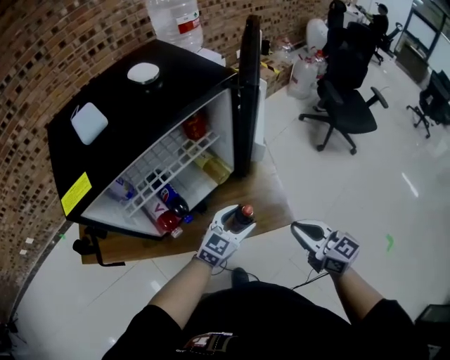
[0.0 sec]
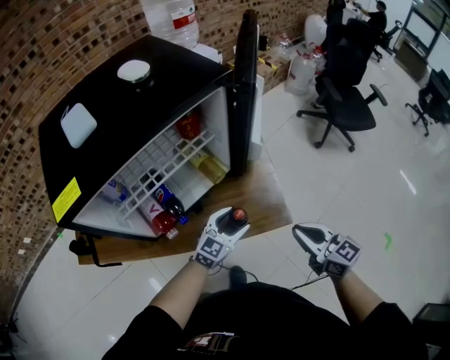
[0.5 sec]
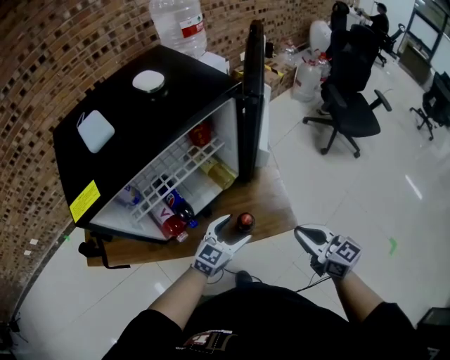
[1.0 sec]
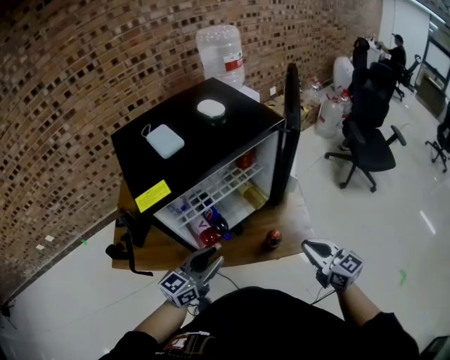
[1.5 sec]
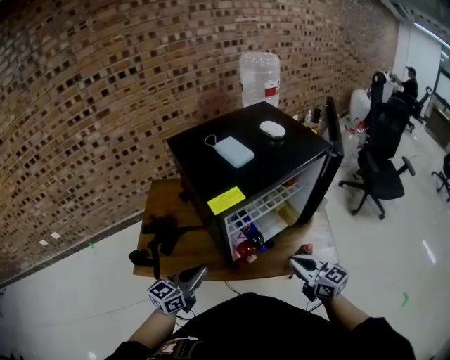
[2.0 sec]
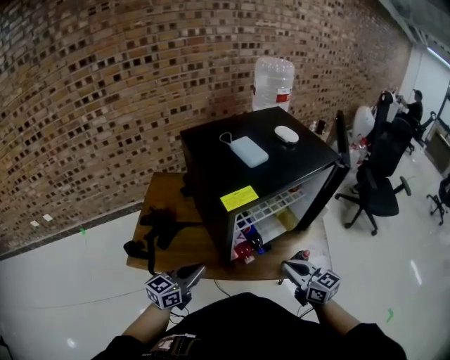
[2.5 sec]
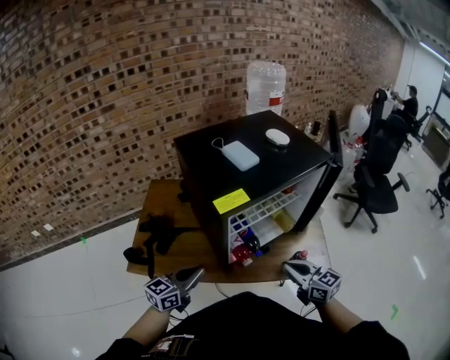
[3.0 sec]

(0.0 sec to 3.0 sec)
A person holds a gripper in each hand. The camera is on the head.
0.0 sec - 1.5 sec: The left gripper travels to the left, upward and backward by about 30 cm, changes its angle by roughly 20 degrees, and closes its fingers, while the right gripper moves to the left and upward, approximately 10 cm.
1.5 sec - 3.0 sec: Both grippers move to the left, approximately 20 cm.

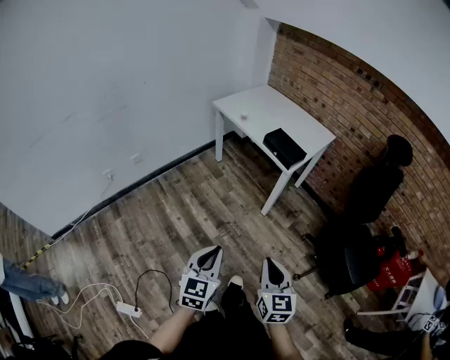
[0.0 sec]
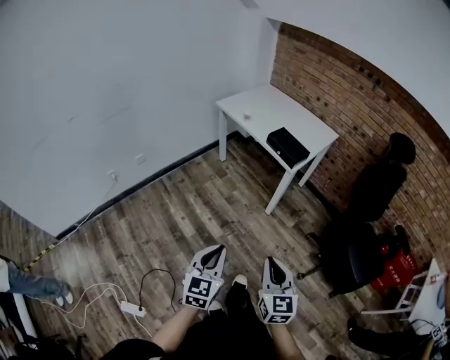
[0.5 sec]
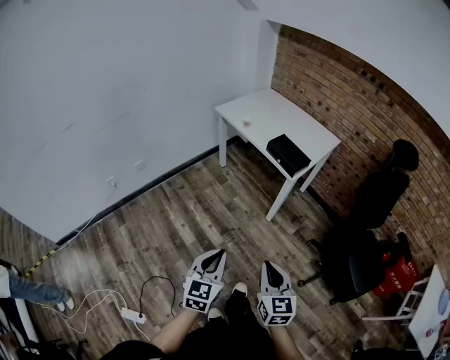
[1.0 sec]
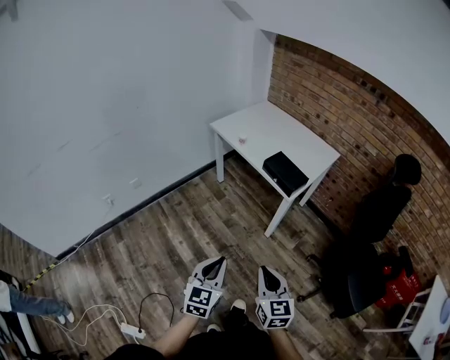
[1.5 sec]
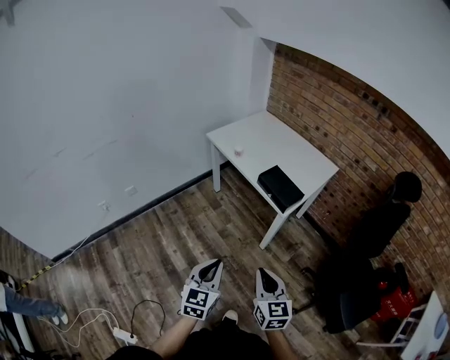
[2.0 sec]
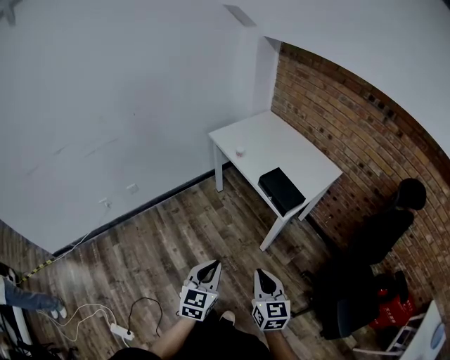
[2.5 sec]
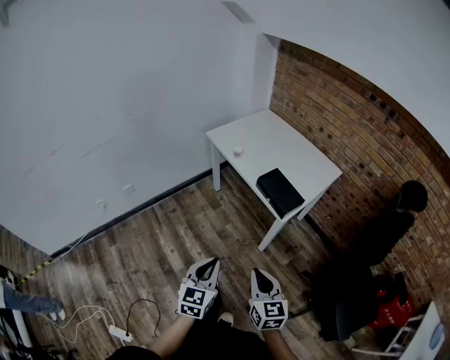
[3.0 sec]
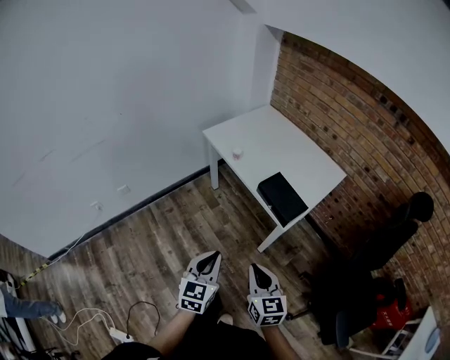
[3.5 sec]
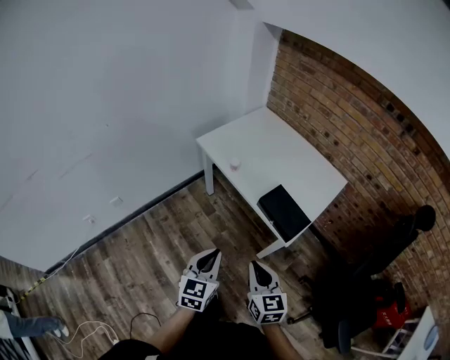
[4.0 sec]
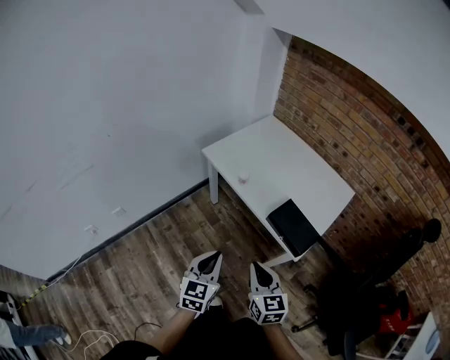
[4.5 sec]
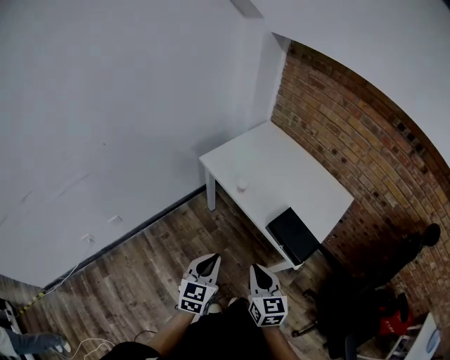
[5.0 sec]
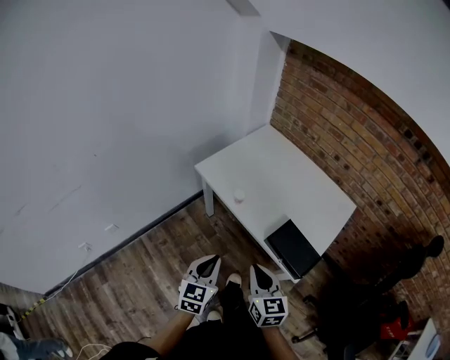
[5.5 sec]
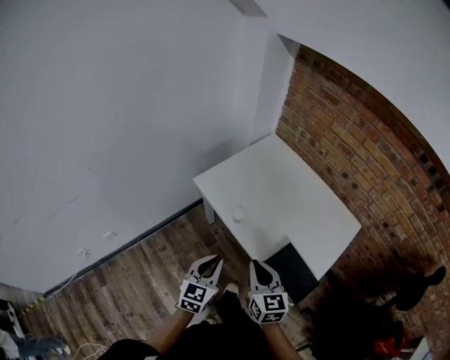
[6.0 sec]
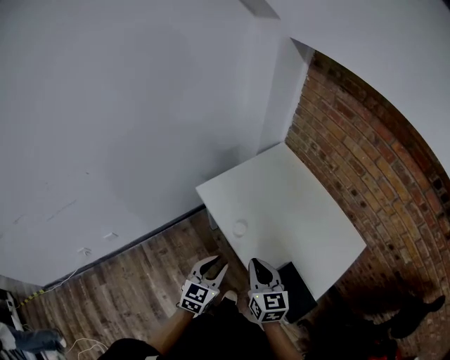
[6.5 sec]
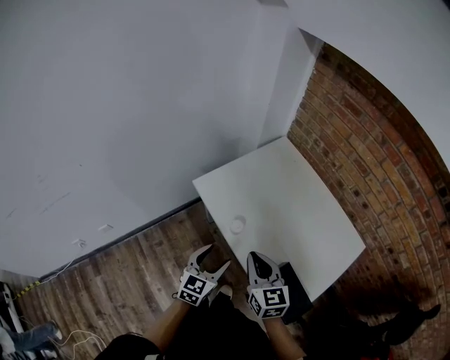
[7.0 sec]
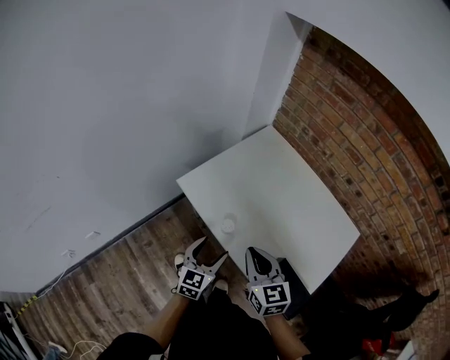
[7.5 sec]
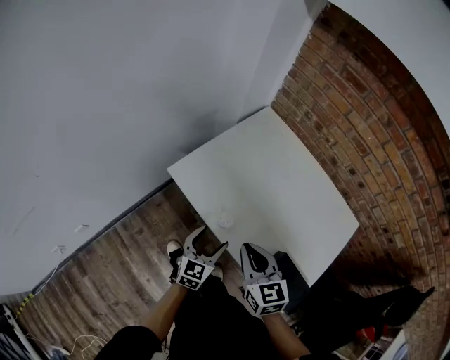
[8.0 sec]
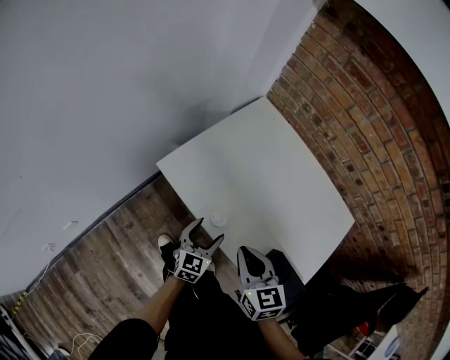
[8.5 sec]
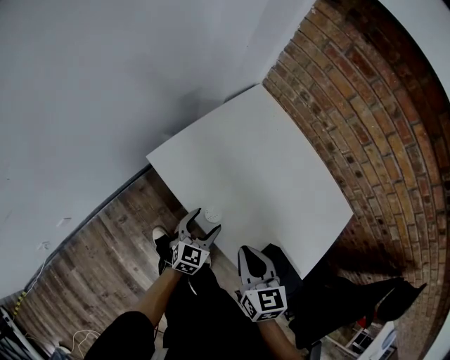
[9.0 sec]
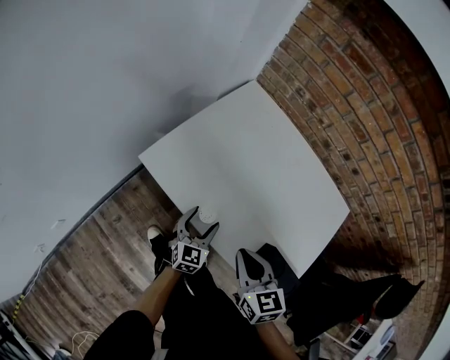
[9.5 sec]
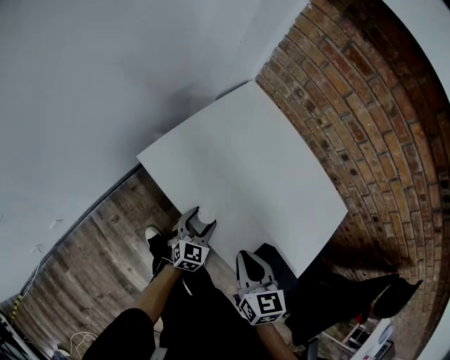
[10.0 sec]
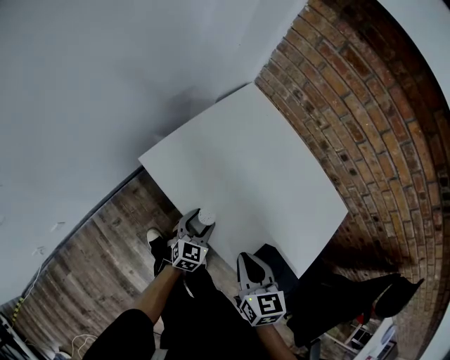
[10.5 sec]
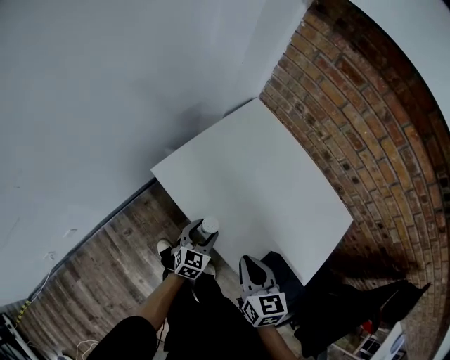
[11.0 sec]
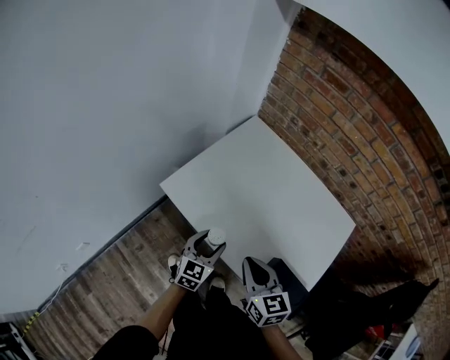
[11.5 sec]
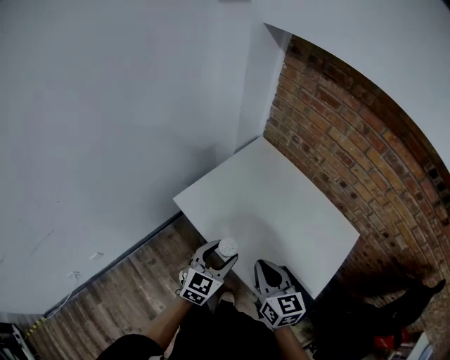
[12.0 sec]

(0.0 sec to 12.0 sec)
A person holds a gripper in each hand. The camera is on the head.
0.0 sec - 2.0 sec: The grippers both shift forward by about 20 cm.
2.0 sec - 4.0 sec: Both grippers move forward, approximately 25 cm.
4.0 sec - 6.0 sec: Both grippers move forward, approximately 30 cm.
6.0 sec - 8.0 sec: The left gripper travels forward and downward by roughly 20 cm, and opens, while the right gripper moves forward, about 15 cm.
8.0 sec - 10.0 sec: The right gripper ends up some 5 cm from where it was, while the left gripper travels downward and forward by approximately 10 cm.
10.0 sec - 12.0 sec: The left gripper heads upward, covering some 20 cm. Meanwhile the right gripper moves upward, about 10 cm.

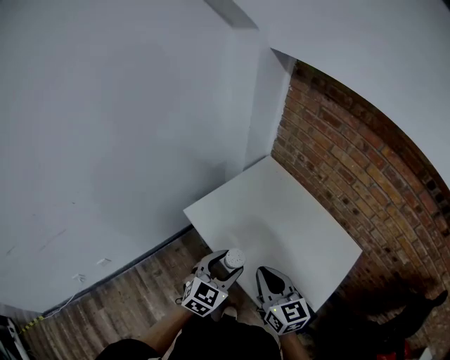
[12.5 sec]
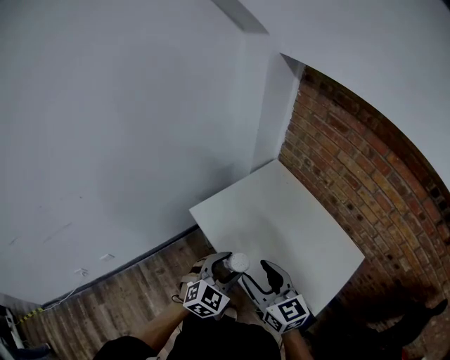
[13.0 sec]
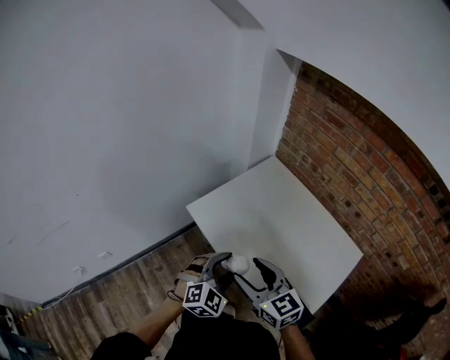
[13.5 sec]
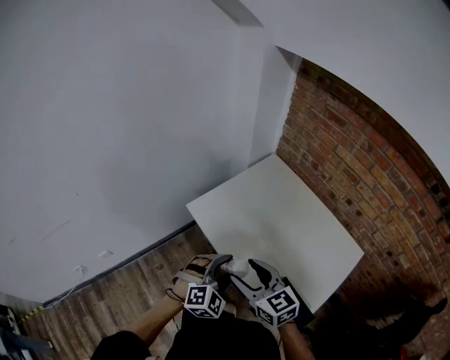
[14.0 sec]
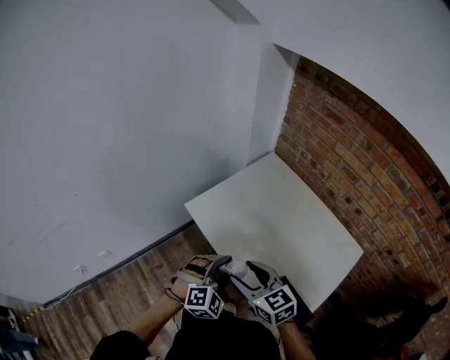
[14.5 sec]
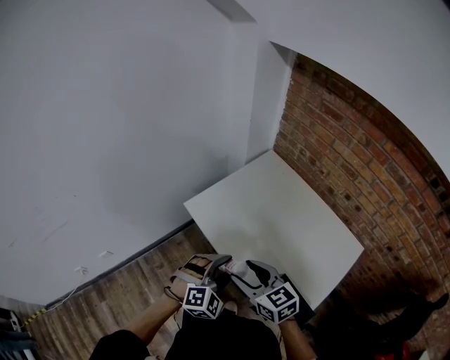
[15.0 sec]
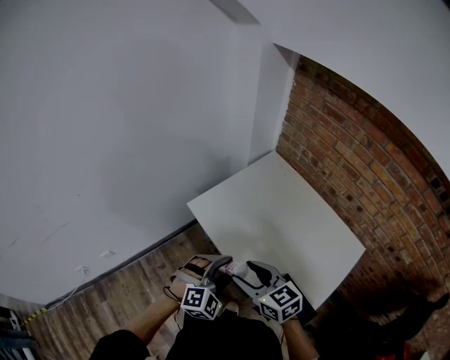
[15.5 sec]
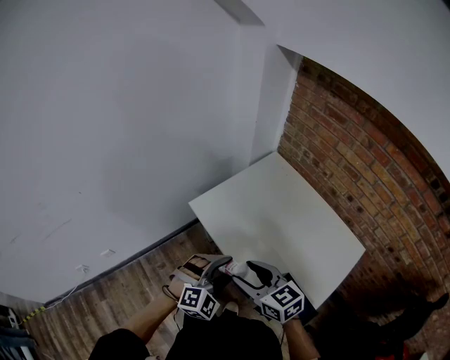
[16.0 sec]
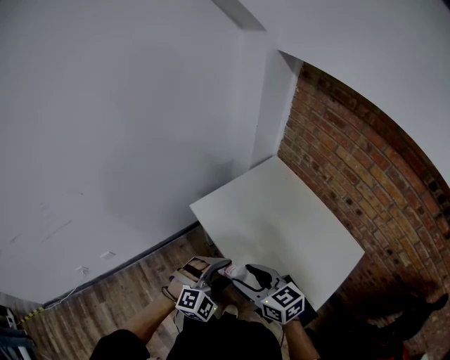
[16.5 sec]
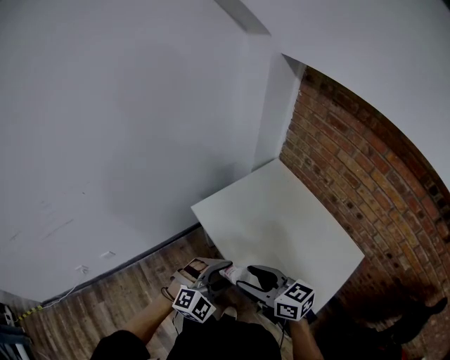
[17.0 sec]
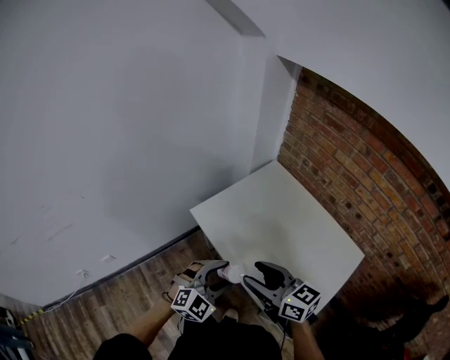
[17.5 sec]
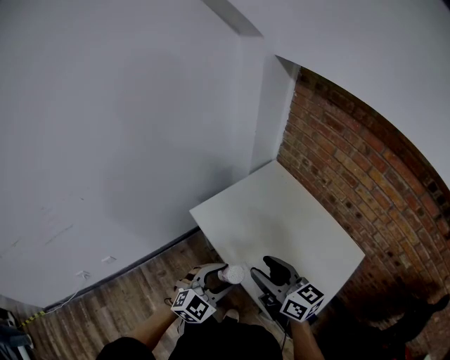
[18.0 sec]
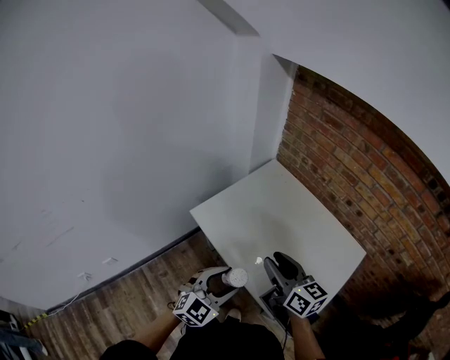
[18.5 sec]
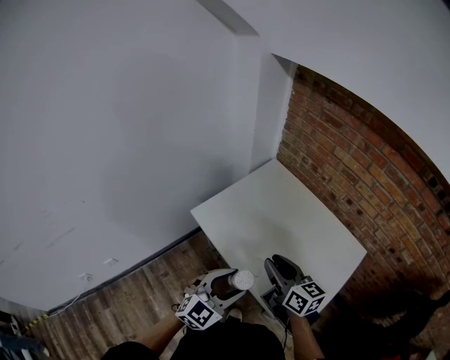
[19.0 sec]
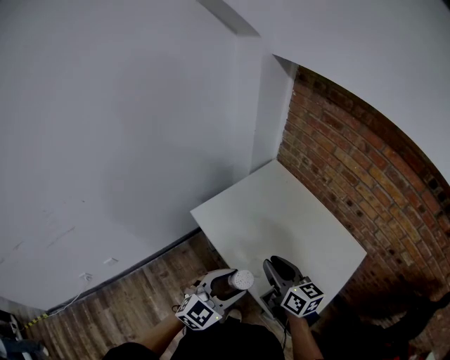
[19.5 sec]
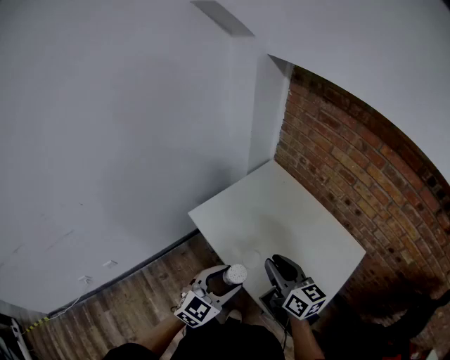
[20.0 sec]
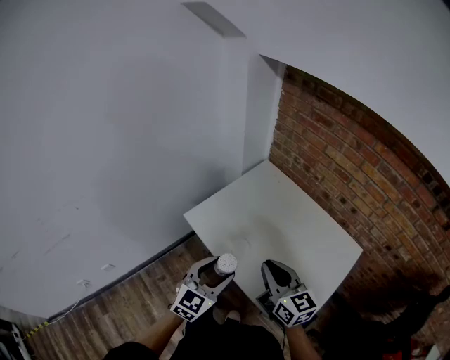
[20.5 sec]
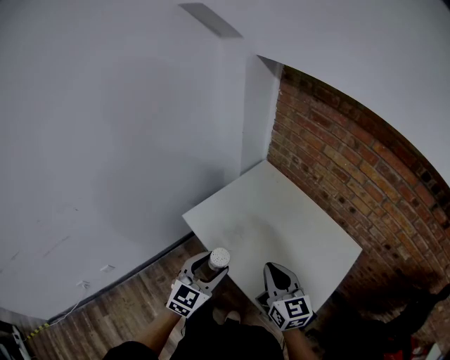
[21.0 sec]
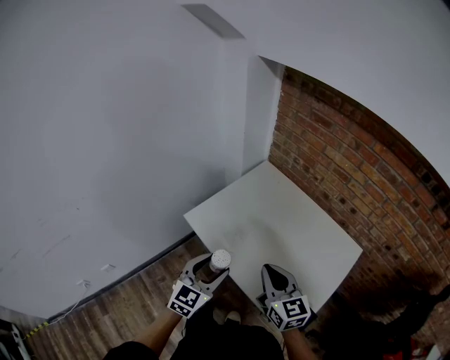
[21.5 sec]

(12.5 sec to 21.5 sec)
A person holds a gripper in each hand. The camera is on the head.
12.5 sec - 14.5 sec: The left gripper ends up about 5 cm from where it was, and swivels about 40 degrees. Meanwhile the right gripper changes place by some 5 cm, rotates some 20 degrees, and opens.
14.5 sec - 17.0 sec: The grippers move only a little.
17.0 sec - 19.5 sec: The right gripper moves to the right and forward, approximately 10 cm, rotates some 30 degrees, and closes its fingers. Meanwhile the left gripper changes its angle by approximately 30 degrees.
19.5 sec - 21.5 sec: The right gripper rotates some 20 degrees, and closes. Meanwhile the left gripper moves forward, approximately 5 cm.

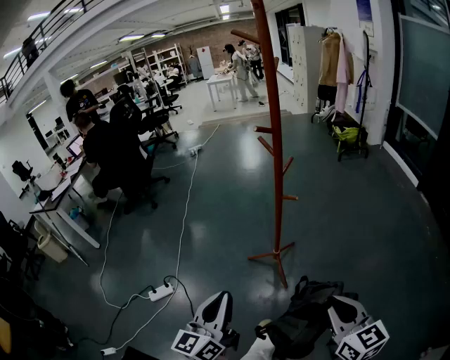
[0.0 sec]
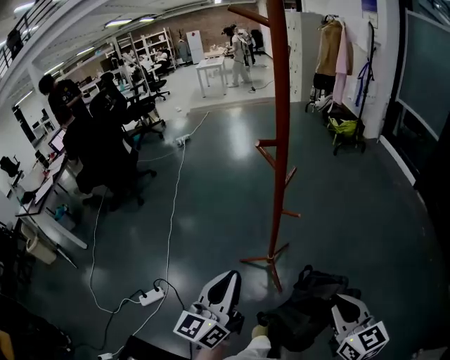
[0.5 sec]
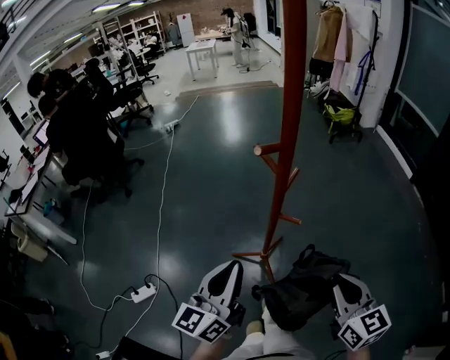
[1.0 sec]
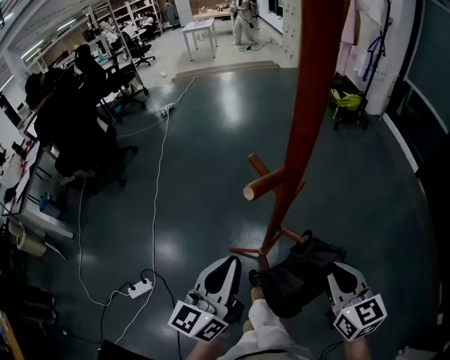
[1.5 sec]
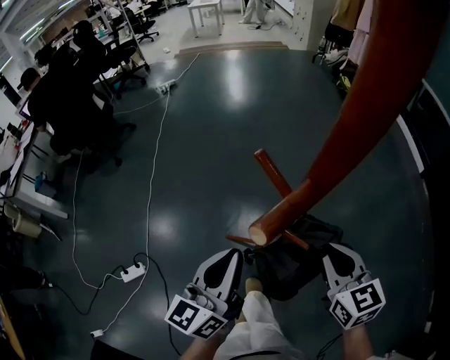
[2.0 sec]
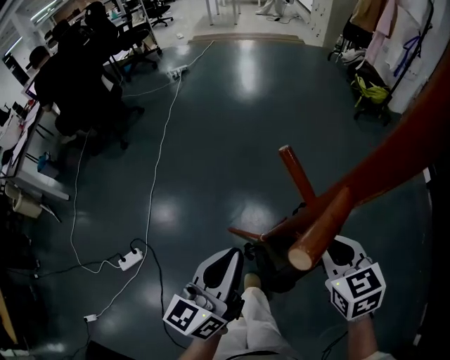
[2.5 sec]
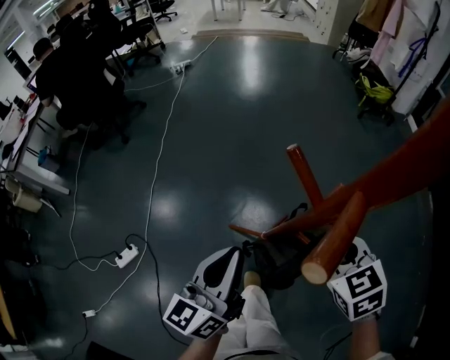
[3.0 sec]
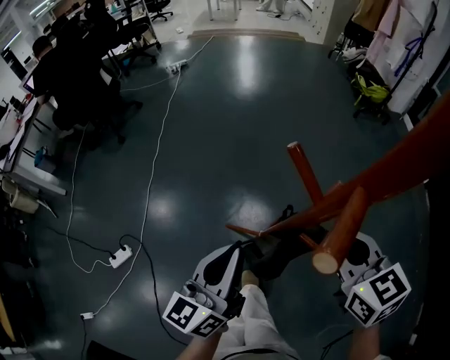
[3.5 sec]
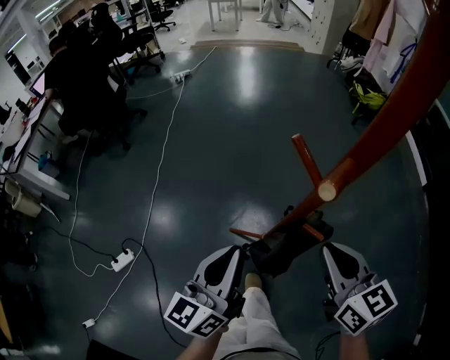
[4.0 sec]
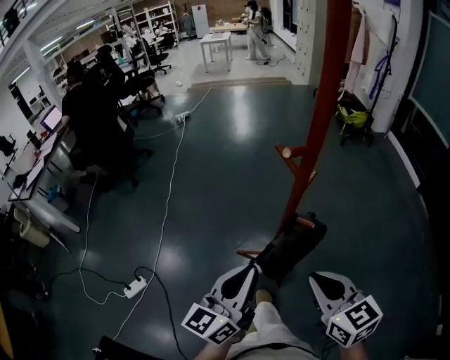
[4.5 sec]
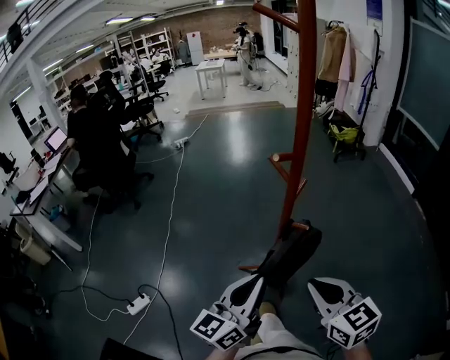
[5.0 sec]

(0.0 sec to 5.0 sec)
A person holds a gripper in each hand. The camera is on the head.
0.0 sec - 2.5 sec: Both grippers are carried forward, roughly 50 cm. The right gripper changes its angle by approximately 30 degrees.
2.5 sec - 5.0 sec: The grippers both shift backward and upward by approximately 25 cm.
